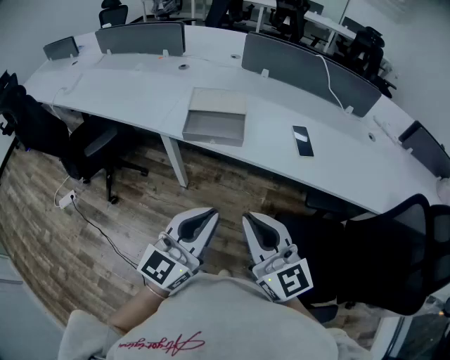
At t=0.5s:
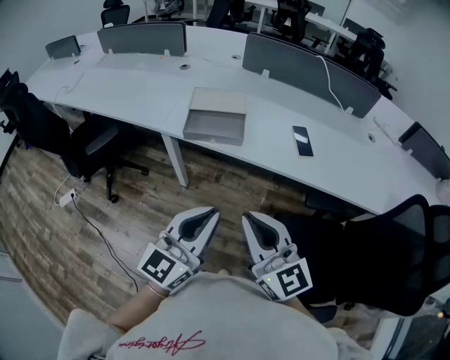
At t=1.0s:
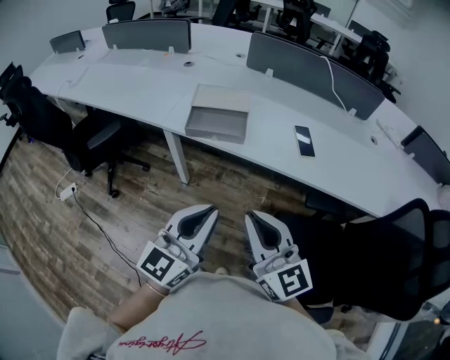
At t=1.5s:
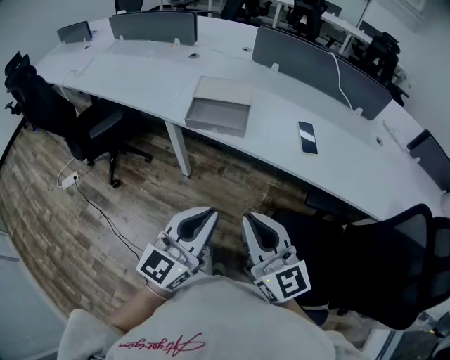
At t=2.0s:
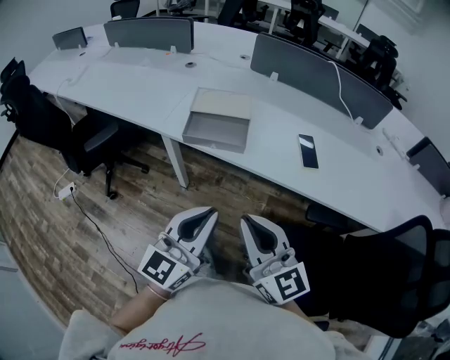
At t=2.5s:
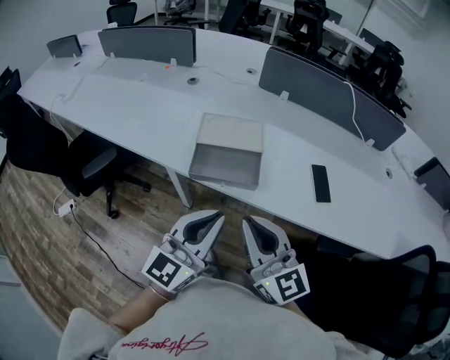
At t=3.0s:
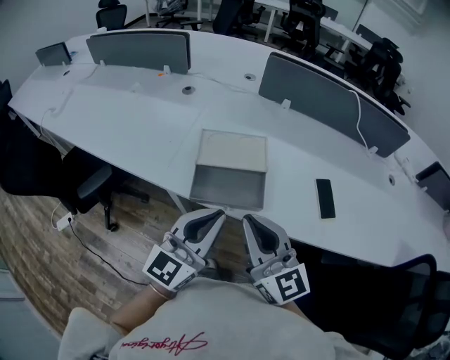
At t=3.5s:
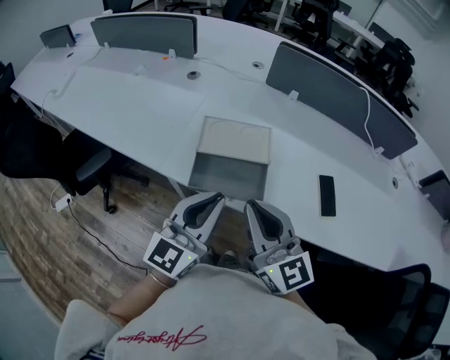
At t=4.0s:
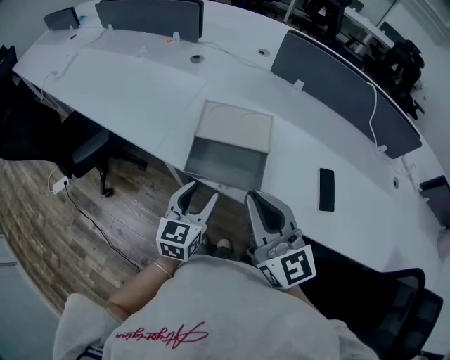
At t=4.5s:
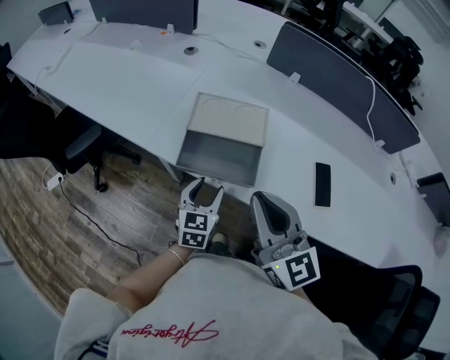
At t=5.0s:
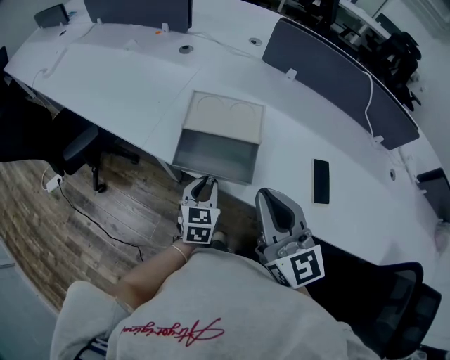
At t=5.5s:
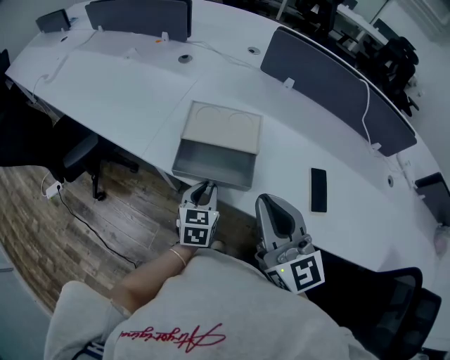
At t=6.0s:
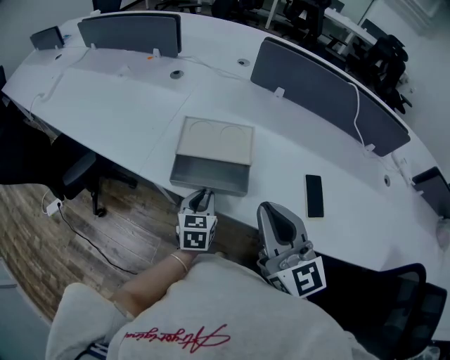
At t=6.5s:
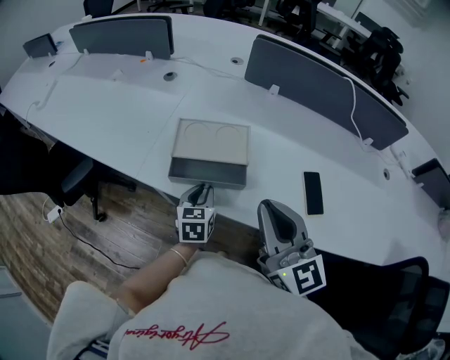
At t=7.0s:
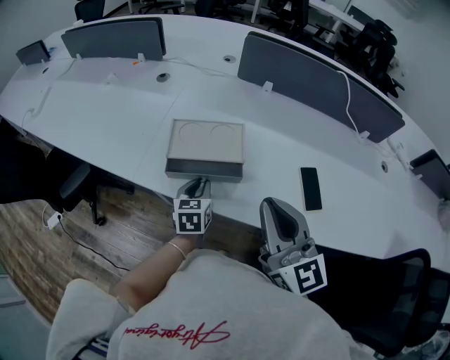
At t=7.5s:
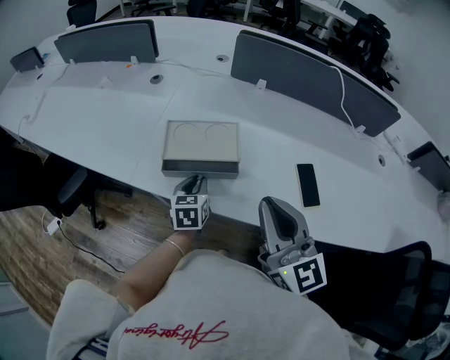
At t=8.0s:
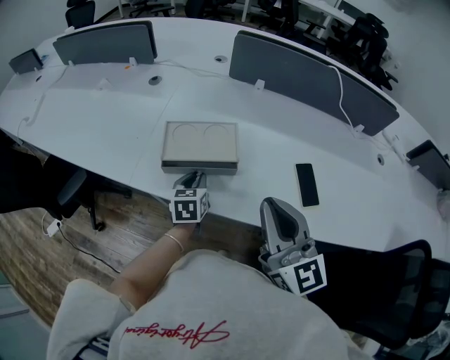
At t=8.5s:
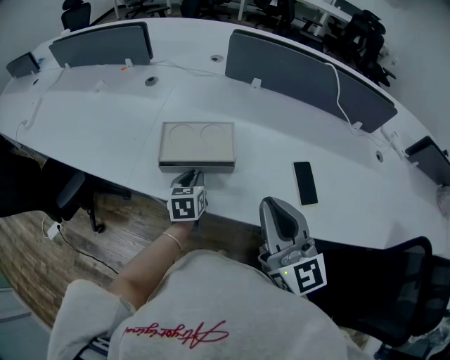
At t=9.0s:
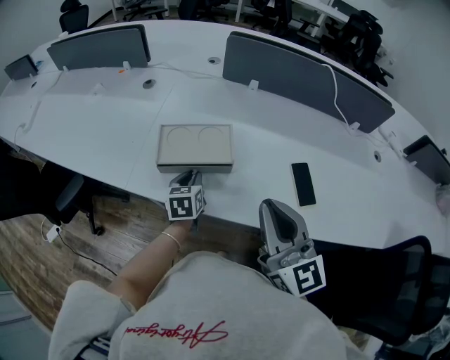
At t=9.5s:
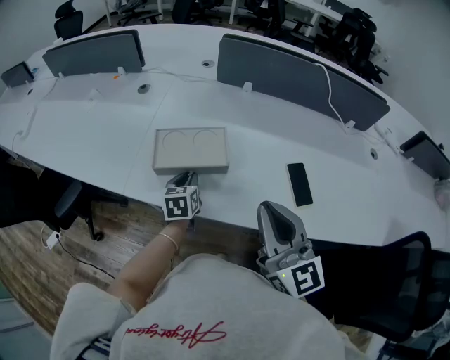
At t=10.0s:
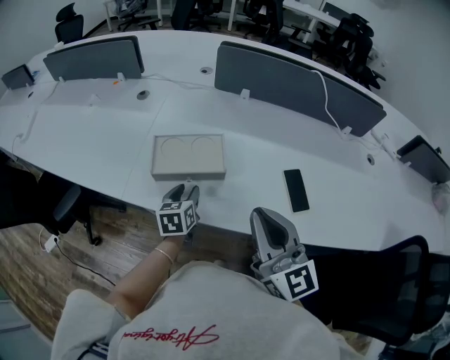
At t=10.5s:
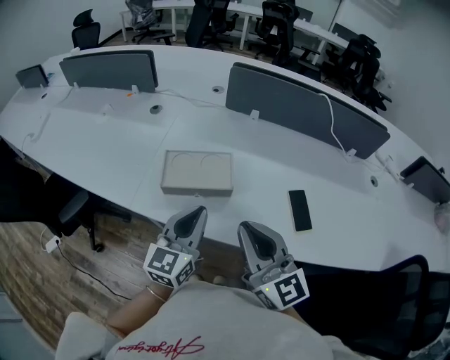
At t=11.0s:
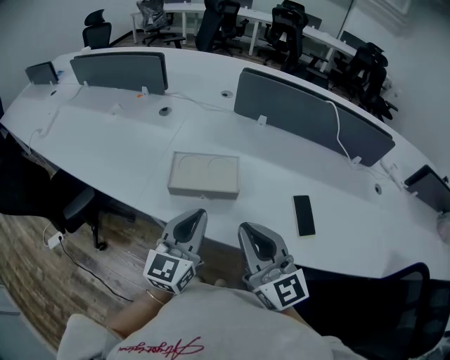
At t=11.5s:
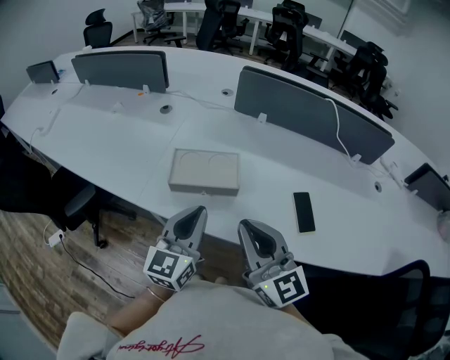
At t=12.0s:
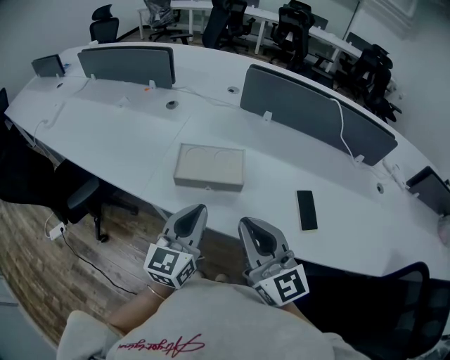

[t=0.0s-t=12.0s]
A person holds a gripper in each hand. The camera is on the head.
t=0.0s to t=2.0s: The grippers move only a little.
t=2.0s to t=4.0s: The right gripper shifts approximately 25 cm forward; the left gripper moves forward and downward, some 30 cm, turns by roughly 30 degrees, and opens up.
t=4.0s to t=6.0s: The left gripper shifts some 10 cm downward and to the right, and closes. Meanwhile the right gripper heads to the right, covering some 5 cm.
t=6.0s to t=8.0s: The left gripper shifts about 5 cm forward.
t=8.0s to t=10.0s: The left gripper opens its fingers.
t=10.0s to t=12.0s: The left gripper is displaced upward and backward by some 20 cm, angles its fingers upward, by roughly 30 degrees, and closes. The right gripper goes some 5 cm to the left.

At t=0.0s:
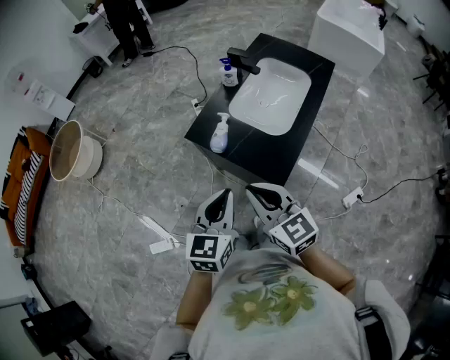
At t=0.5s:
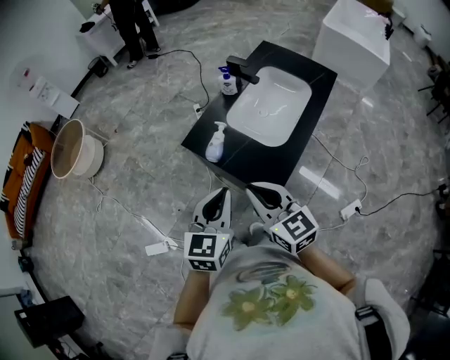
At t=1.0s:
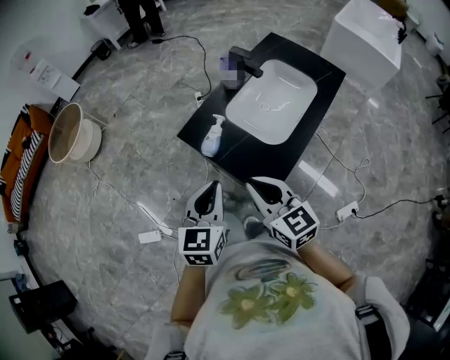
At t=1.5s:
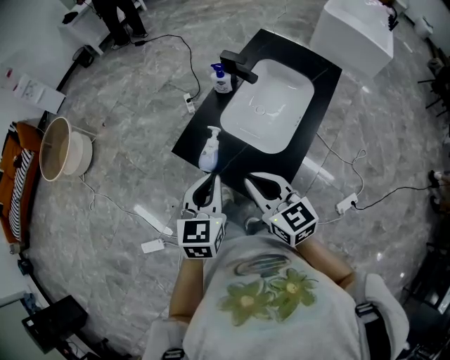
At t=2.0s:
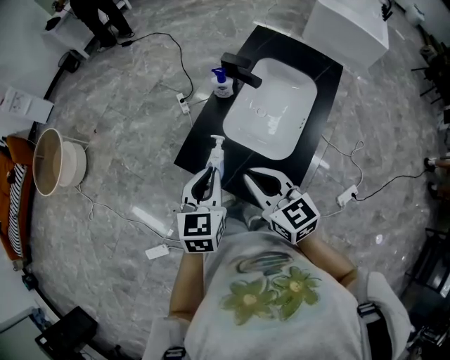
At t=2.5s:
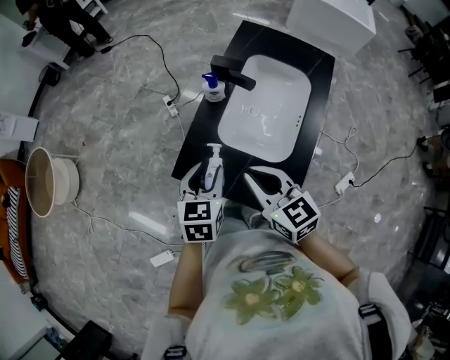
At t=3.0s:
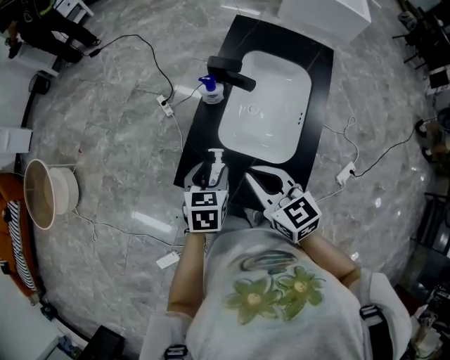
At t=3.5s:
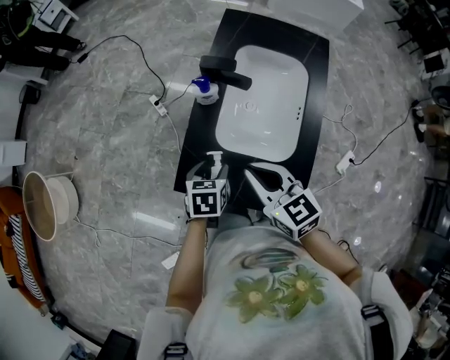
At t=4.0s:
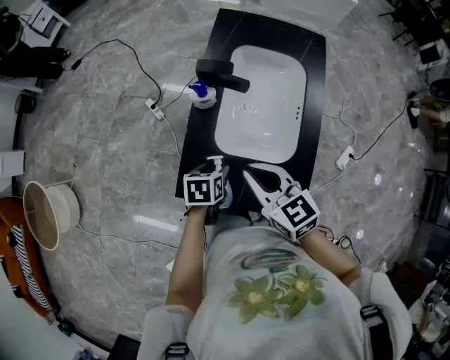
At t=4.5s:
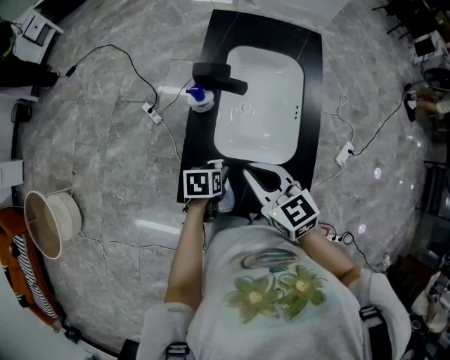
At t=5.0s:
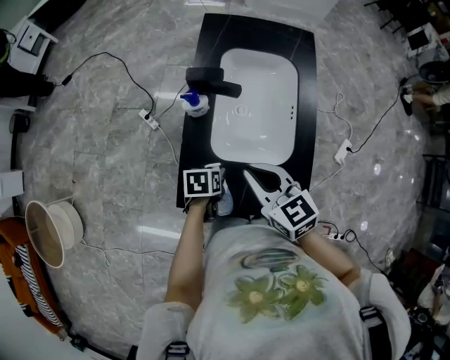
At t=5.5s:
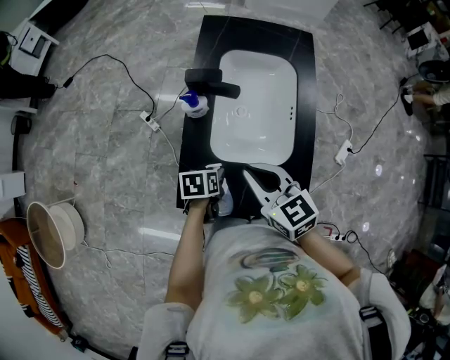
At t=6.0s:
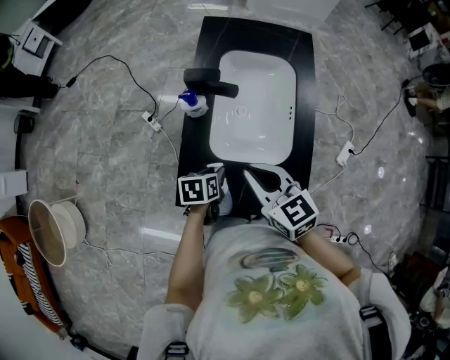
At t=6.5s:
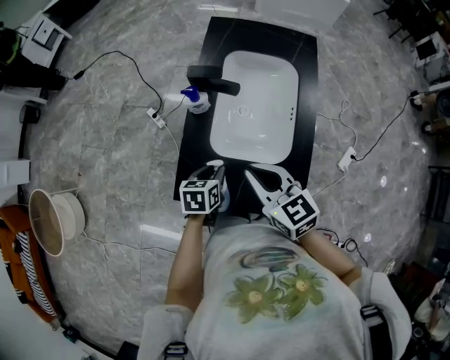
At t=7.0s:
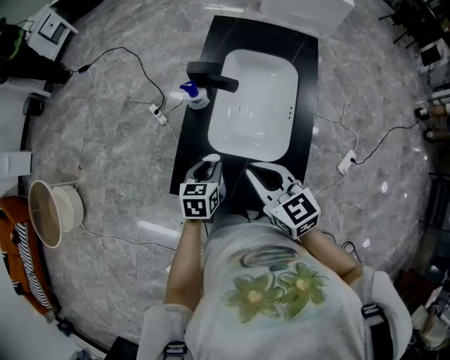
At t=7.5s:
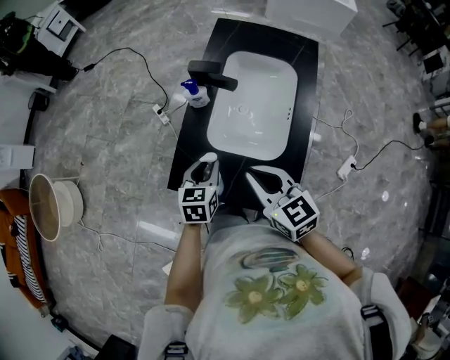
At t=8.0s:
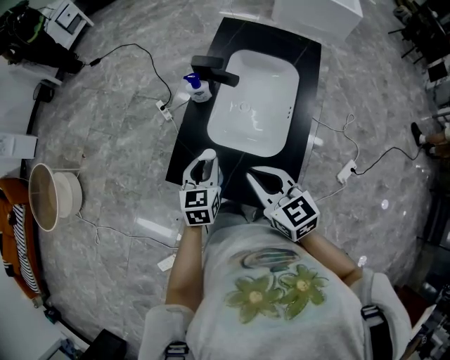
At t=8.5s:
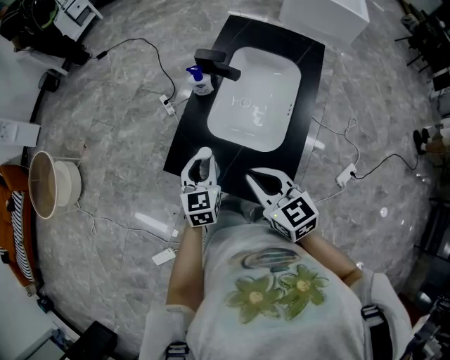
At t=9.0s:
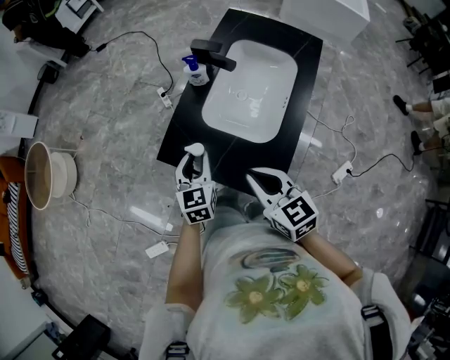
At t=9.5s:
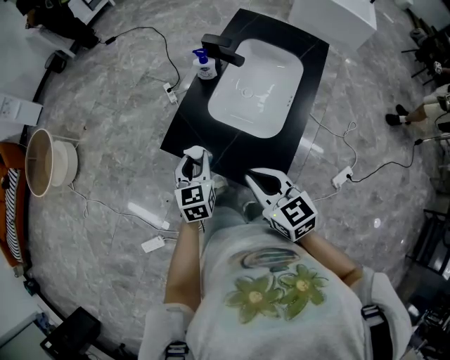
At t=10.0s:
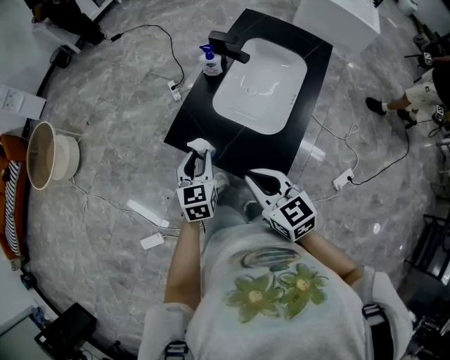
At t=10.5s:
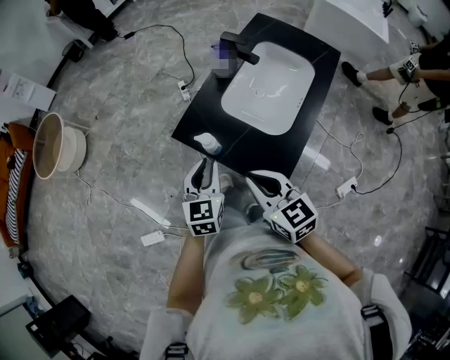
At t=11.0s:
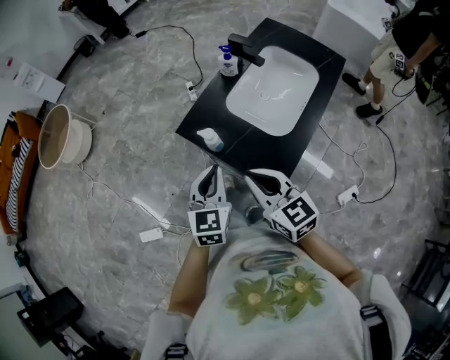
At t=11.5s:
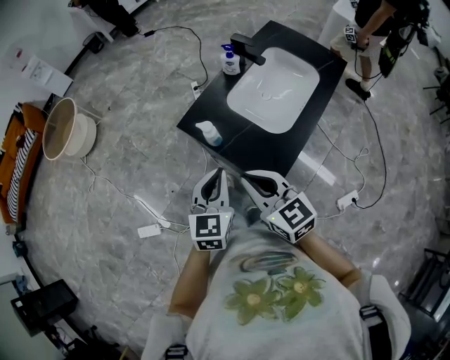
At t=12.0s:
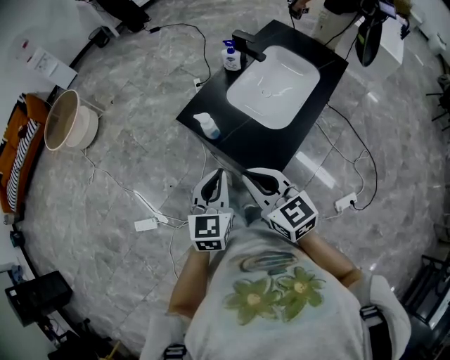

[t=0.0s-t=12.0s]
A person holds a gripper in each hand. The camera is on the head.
t=0.0s to t=2.0s: The two grippers go roughly 25 cm forward.
t=2.0s to t=4.0s: The right gripper shifts by some 15 cm. Meanwhile the left gripper goes approximately 20 cm downward, points its fingers roughly 30 degrees further downward, and opens up.
t=4.0s to t=6.0s: The left gripper closes up.
t=6.0s to t=8.0s: The left gripper moves upward, roughly 10 cm, and swivels about 40 degrees. The right gripper changes place by roughly 10 cm.
t=8.0s to t=10.0s: The left gripper travels backward and to the left by some 10 cm, while the right gripper goes about 10 cm backward.
t=10.0s to t=12.0s: The left gripper travels backward and upward by some 20 cm, and closes its fingers; the right gripper goes some 10 cm backward.

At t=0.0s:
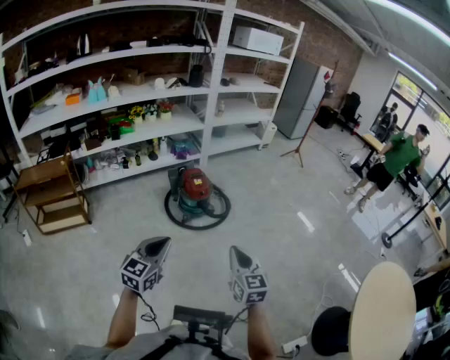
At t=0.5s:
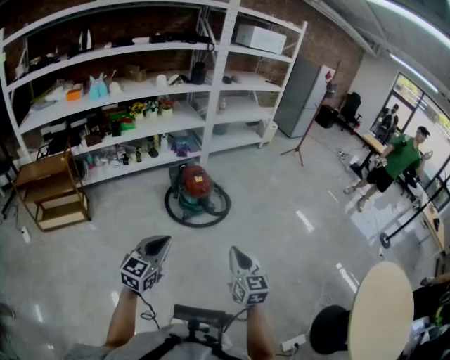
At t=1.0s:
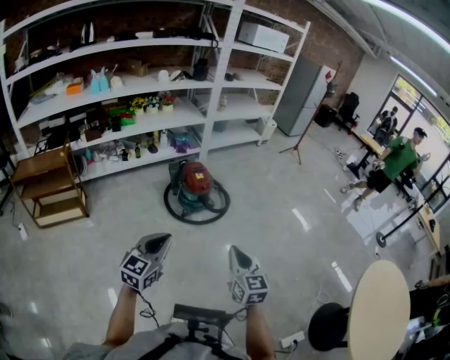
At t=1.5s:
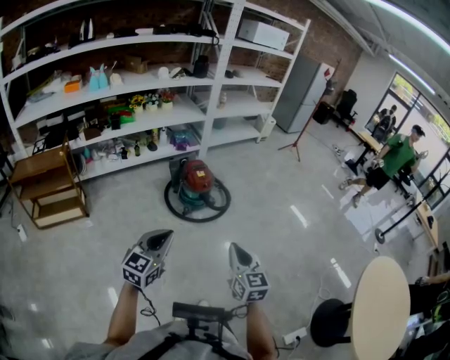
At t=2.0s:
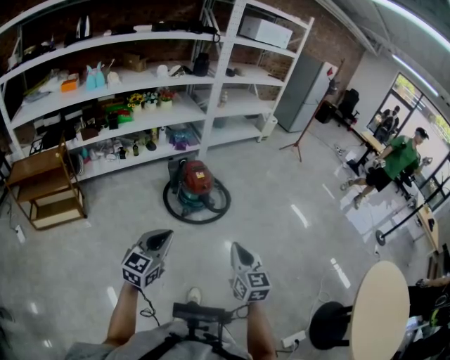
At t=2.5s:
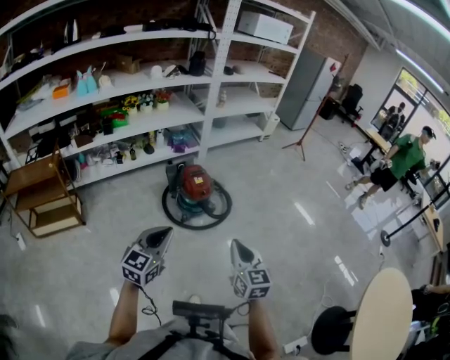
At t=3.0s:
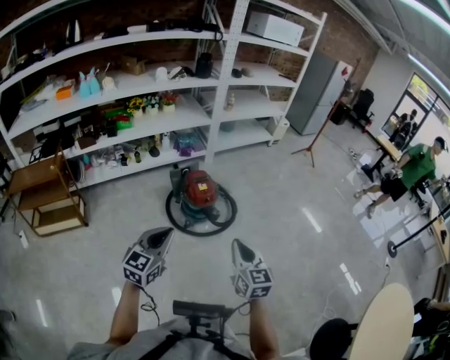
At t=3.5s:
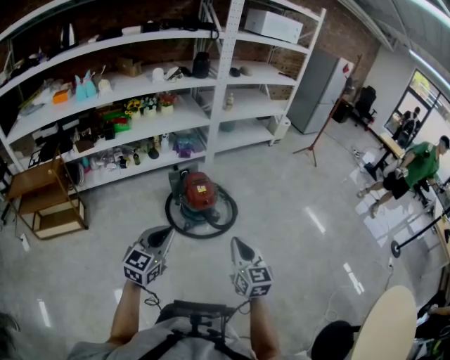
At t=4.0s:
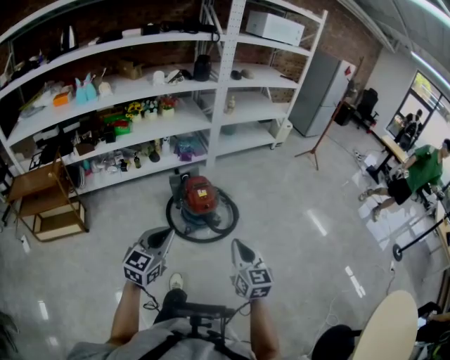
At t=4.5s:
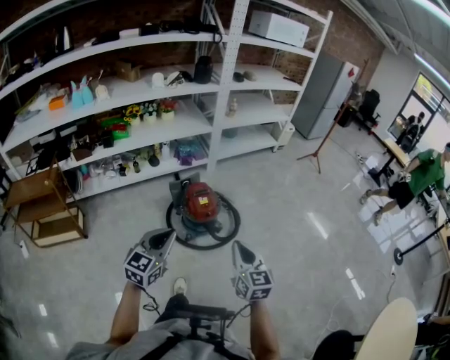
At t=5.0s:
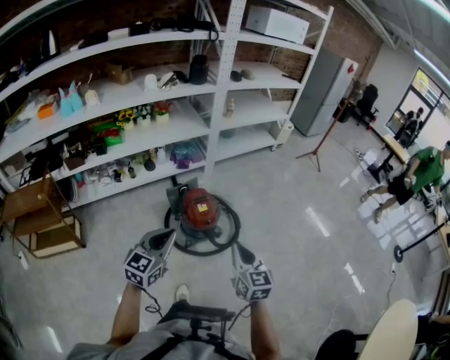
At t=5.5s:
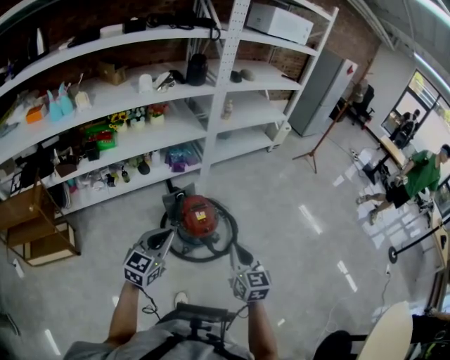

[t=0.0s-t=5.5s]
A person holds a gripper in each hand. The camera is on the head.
t=0.0s to t=2.0s: Both grippers move to the left, roughly 5 cm.
t=2.0s to t=3.5s: Both grippers travel together forward, roughly 20 cm.
t=3.5s to t=5.5s: The grippers both shift forward by some 25 cm.
